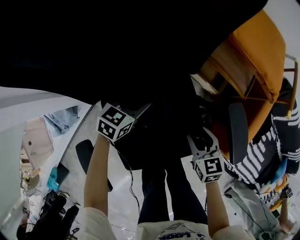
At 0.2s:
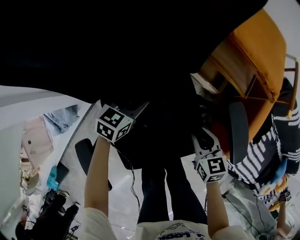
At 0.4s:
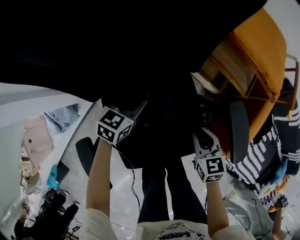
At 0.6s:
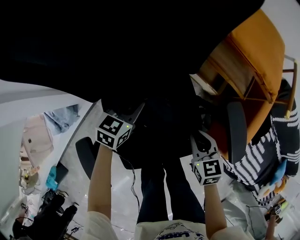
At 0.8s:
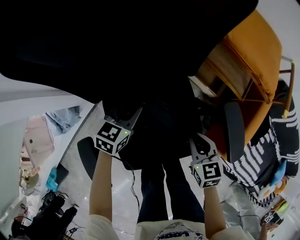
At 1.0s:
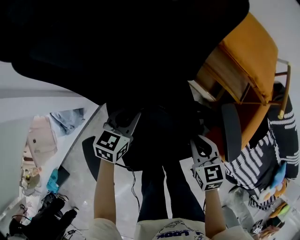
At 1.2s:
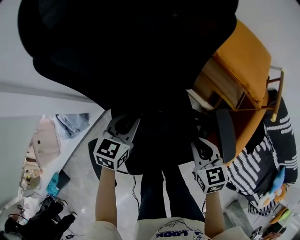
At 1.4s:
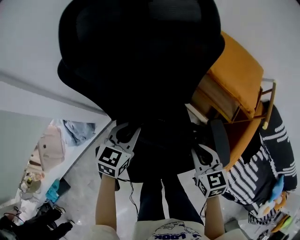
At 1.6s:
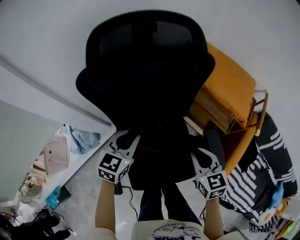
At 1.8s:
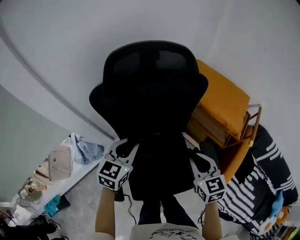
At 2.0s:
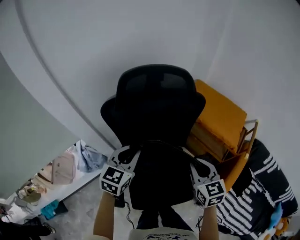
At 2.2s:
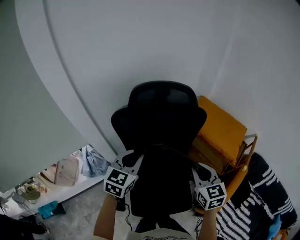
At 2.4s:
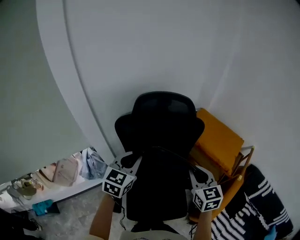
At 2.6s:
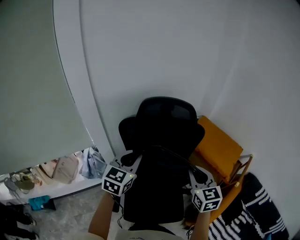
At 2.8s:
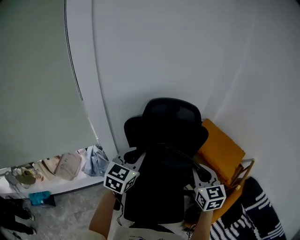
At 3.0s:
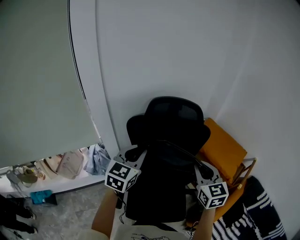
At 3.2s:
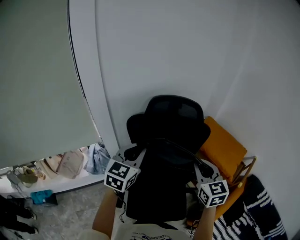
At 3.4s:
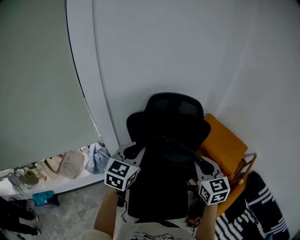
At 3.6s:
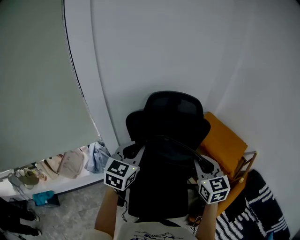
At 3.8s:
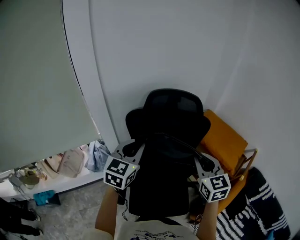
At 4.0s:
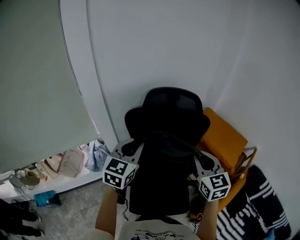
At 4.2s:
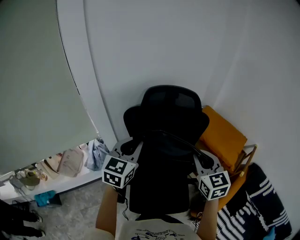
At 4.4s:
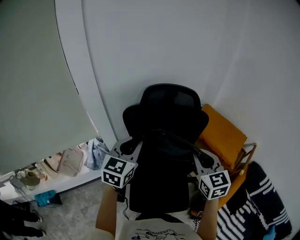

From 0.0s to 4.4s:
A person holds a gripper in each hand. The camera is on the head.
From 0.0s to 1.4s: Both grippers move upward, about 20 cm. The right gripper closes its fingers. Meanwhile the left gripper turns by roughly 20 degrees, and closes its fingers.
From 1.4s to 3.0s: The grippers both shift upward by about 35 cm. The right gripper swivels about 30 degrees, while the left gripper turns by approximately 30 degrees.
From 3.0s to 4.4s: Both grippers stay put.

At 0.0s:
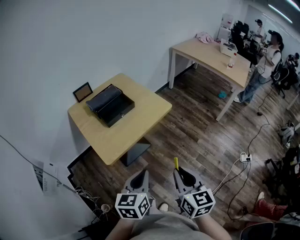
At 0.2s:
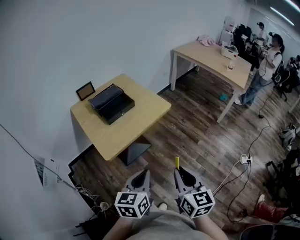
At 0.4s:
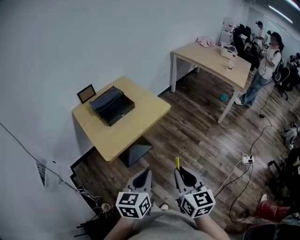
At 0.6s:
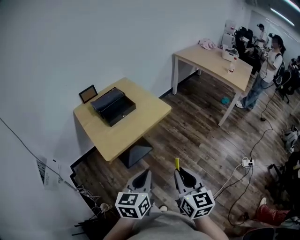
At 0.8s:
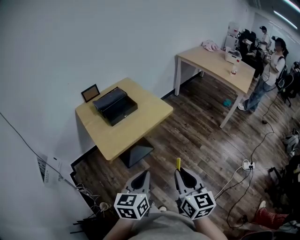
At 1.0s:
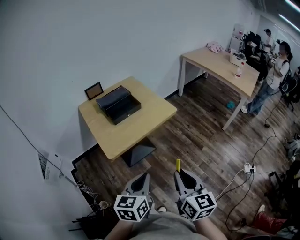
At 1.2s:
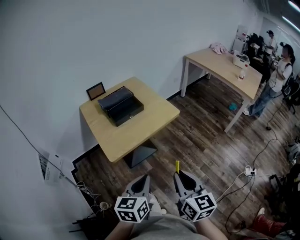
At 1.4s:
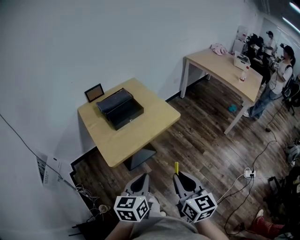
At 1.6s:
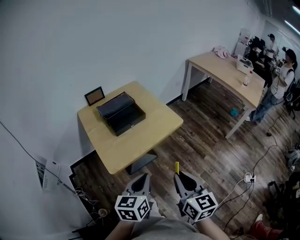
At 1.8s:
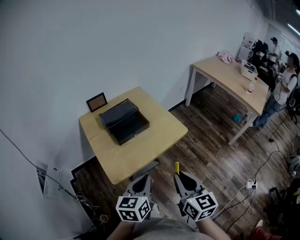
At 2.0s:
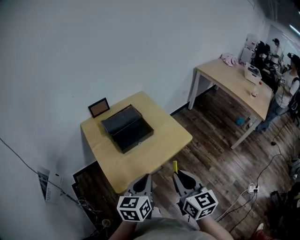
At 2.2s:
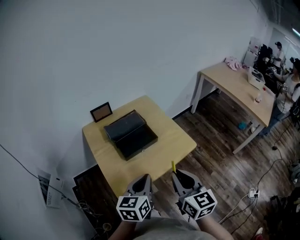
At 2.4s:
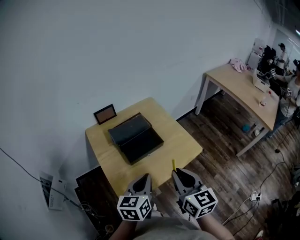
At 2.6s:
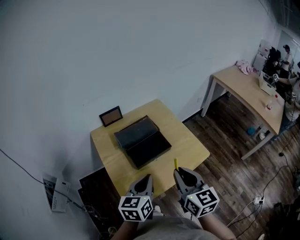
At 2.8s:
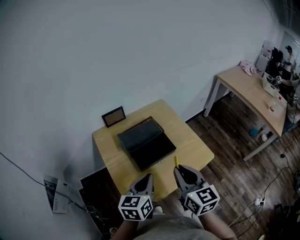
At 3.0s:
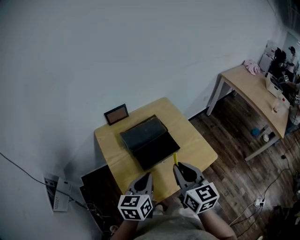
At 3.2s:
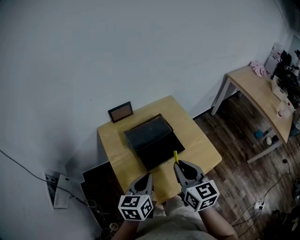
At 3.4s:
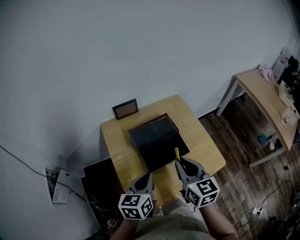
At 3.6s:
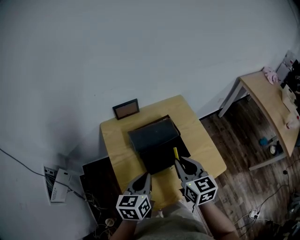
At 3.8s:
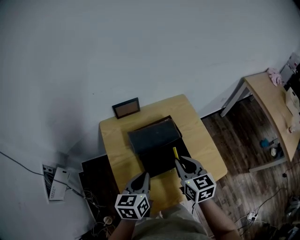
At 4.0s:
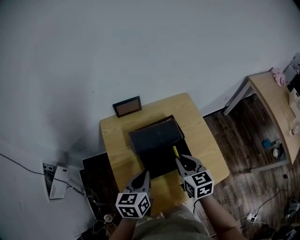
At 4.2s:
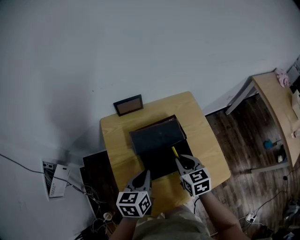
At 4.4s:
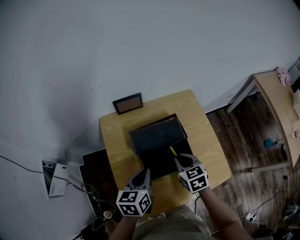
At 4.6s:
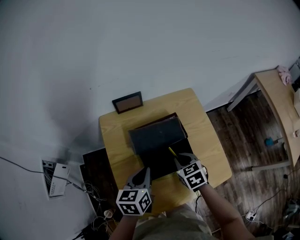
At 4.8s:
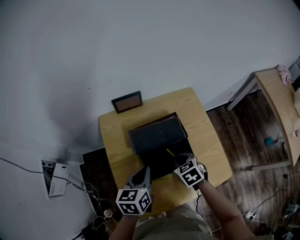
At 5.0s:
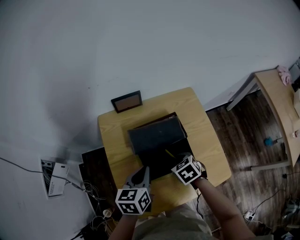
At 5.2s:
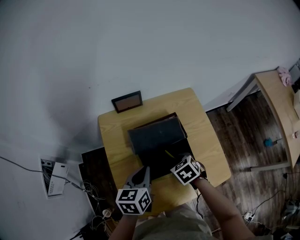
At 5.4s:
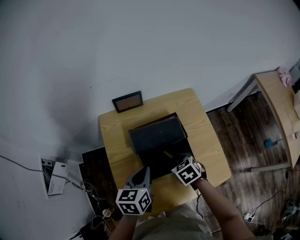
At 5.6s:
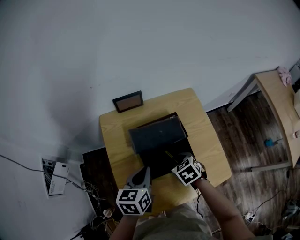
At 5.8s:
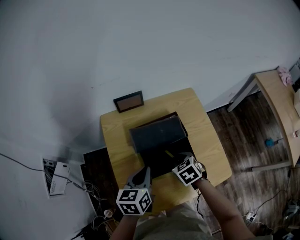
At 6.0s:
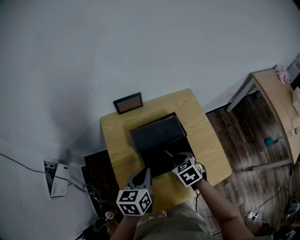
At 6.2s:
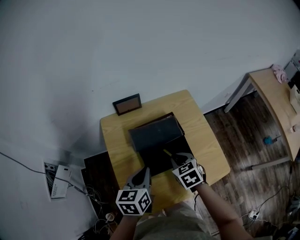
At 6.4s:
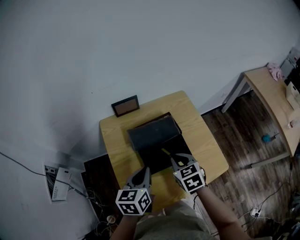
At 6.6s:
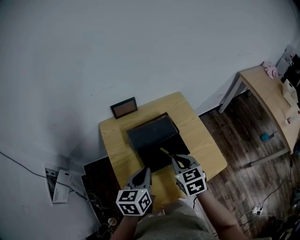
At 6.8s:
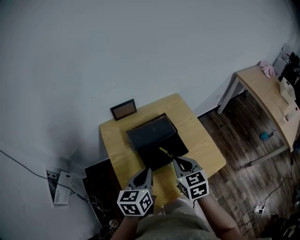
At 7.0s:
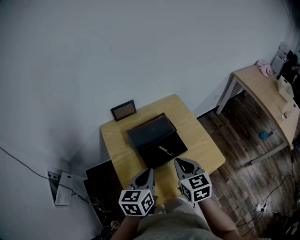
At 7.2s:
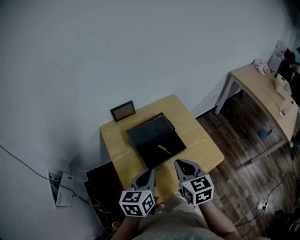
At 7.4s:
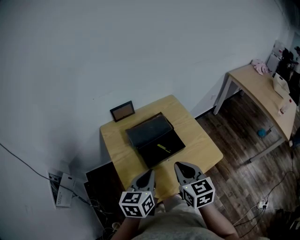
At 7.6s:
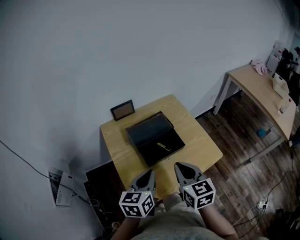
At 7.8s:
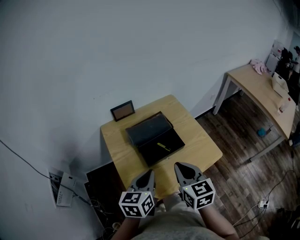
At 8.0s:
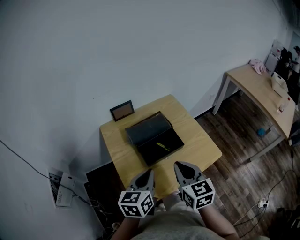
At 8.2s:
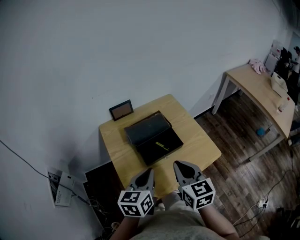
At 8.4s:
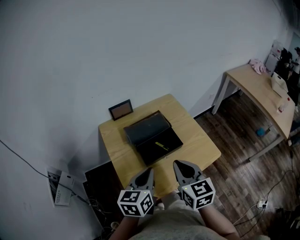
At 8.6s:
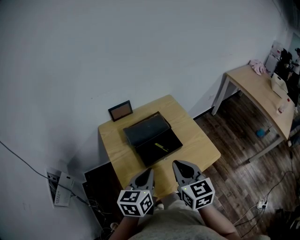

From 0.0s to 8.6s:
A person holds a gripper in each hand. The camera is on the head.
From 0.0s to 1.4s: The grippers move only a little.
From 1.4s to 2.8s: Both grippers travel together forward and to the left, some 30 cm.
From 2.8s to 4.4s: The right gripper moves forward and downward, about 25 cm, and tips its fingers downward by some 30 degrees. The left gripper travels forward, downward and to the left by approximately 15 cm.
From 5.8s to 7.2s: The right gripper heads upward and backward, covering approximately 20 cm, and tilts its fingers roughly 30 degrees upward, while the left gripper goes roughly 10 cm backward and upward.
From 7.2s to 8.6s: There are only small adjustments of the grippers.

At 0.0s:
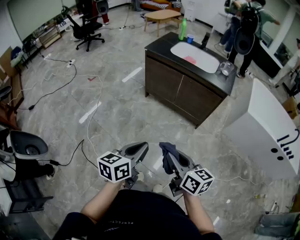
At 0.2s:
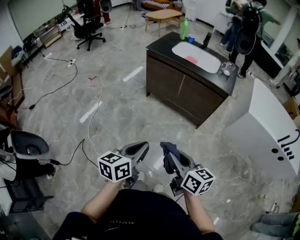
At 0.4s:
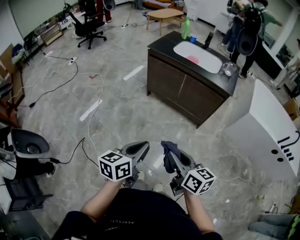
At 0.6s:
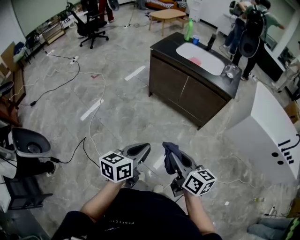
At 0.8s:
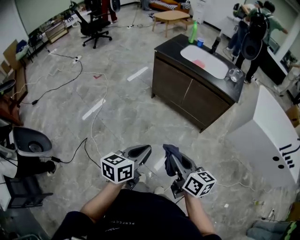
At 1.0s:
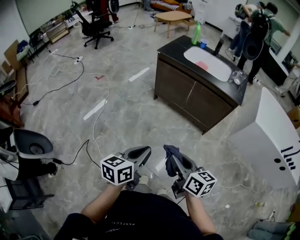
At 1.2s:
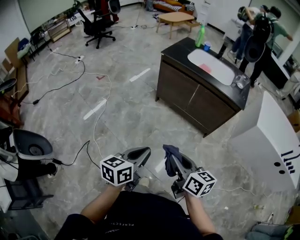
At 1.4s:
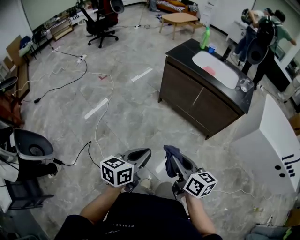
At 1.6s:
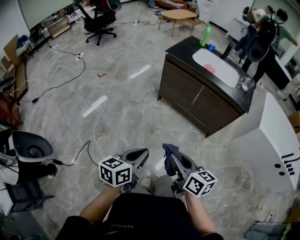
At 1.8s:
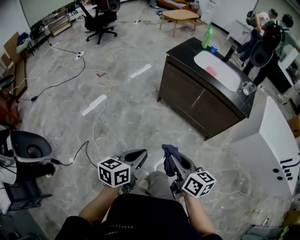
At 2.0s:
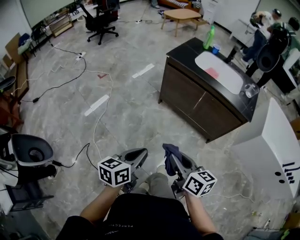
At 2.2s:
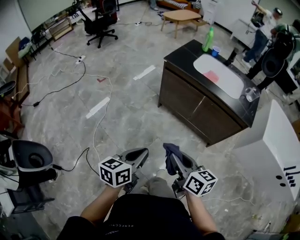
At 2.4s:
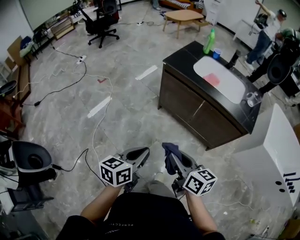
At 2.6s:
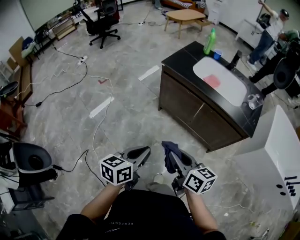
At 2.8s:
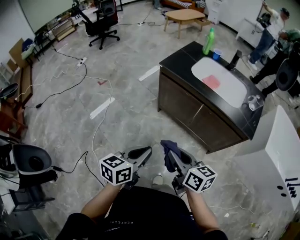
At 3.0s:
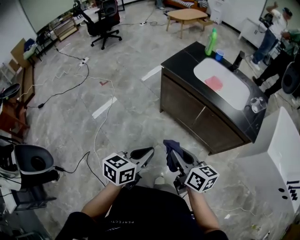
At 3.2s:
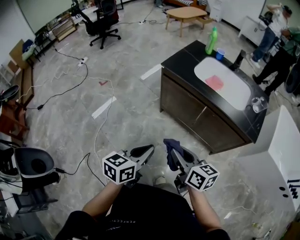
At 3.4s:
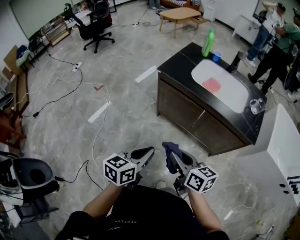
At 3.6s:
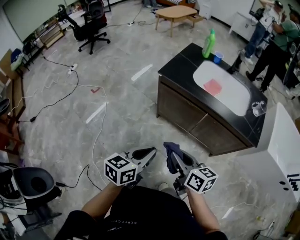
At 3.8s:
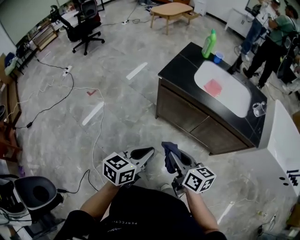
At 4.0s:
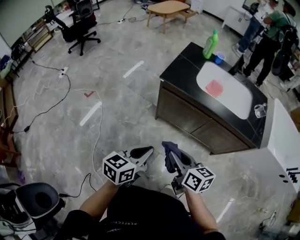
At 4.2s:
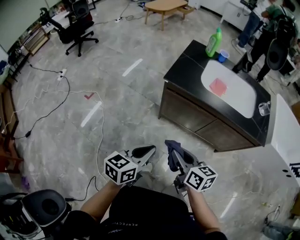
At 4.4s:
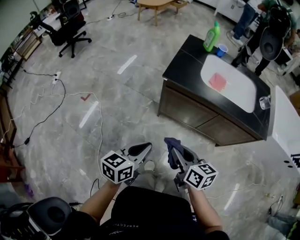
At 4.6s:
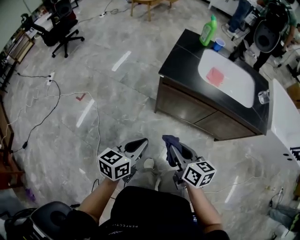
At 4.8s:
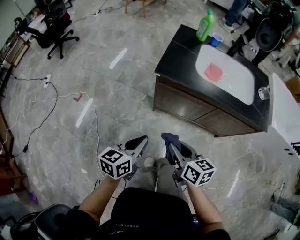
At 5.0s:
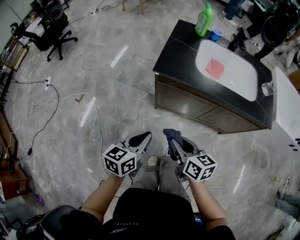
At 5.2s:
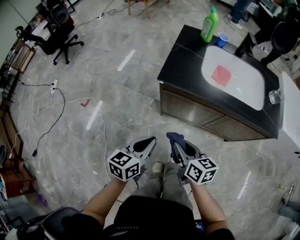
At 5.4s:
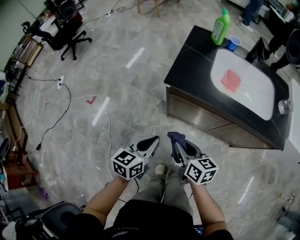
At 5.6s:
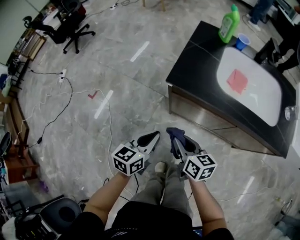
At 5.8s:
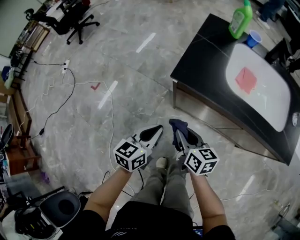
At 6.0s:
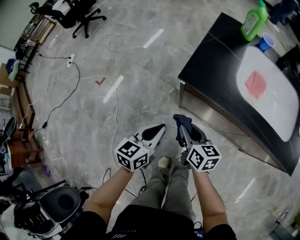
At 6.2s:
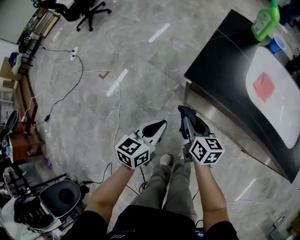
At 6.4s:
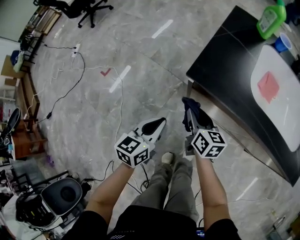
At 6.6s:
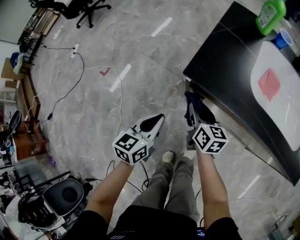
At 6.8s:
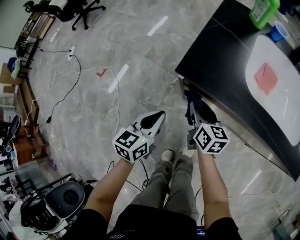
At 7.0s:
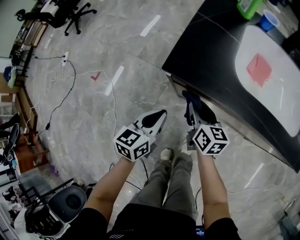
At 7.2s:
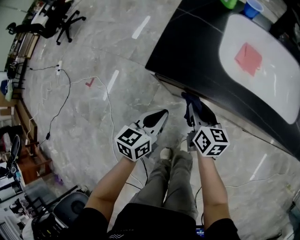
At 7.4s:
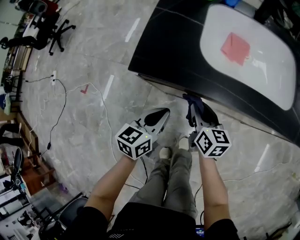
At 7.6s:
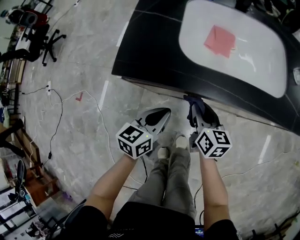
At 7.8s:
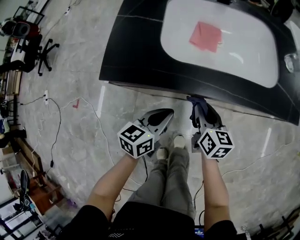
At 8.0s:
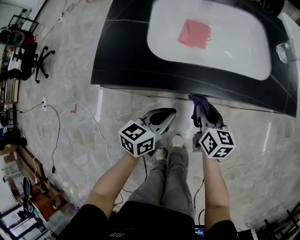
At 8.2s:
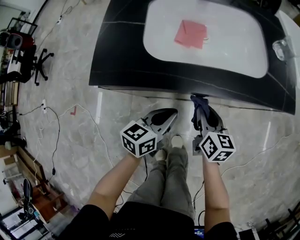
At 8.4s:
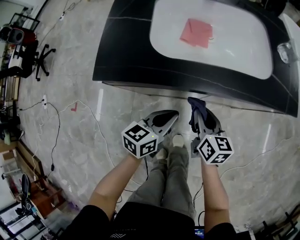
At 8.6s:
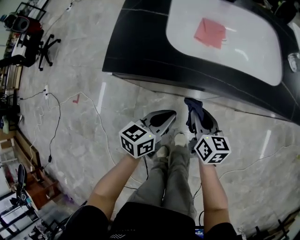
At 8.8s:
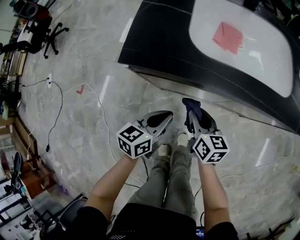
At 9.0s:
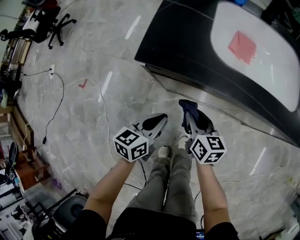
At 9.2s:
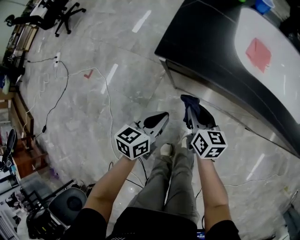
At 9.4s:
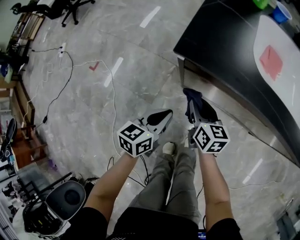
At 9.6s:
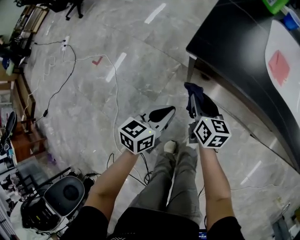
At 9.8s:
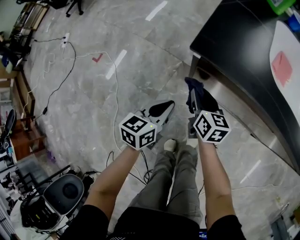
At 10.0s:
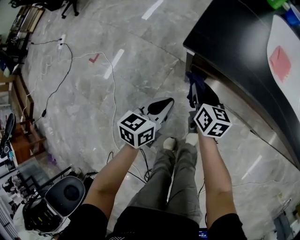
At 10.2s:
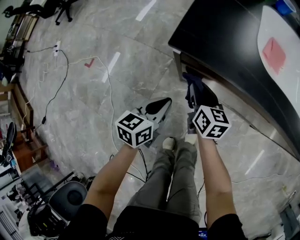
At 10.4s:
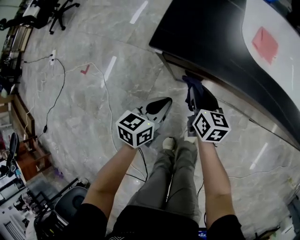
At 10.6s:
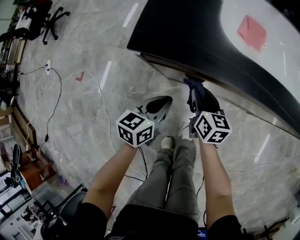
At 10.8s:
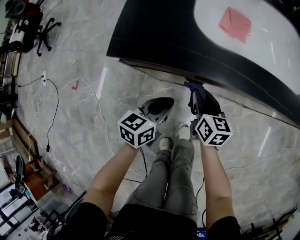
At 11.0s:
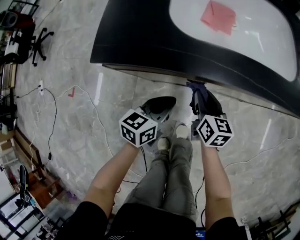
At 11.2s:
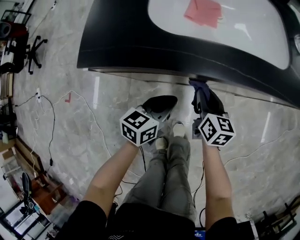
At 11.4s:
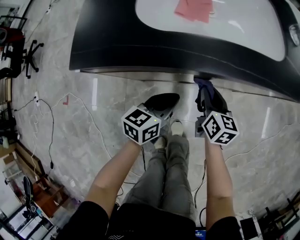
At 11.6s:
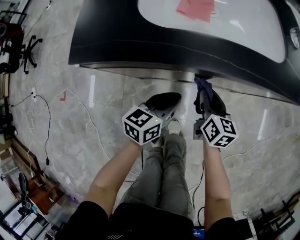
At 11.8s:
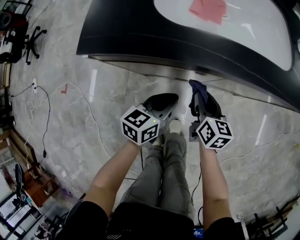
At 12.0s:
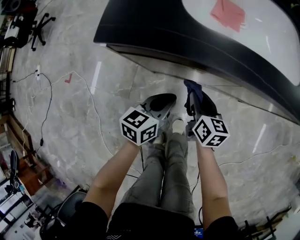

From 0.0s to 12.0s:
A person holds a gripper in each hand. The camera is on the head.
From 0.0s to 1.6s: The grippers both shift to the left and forward by approximately 15 cm.
From 1.6s to 3.0s: The left gripper shifts some 25 cm forward and to the right, while the right gripper heads forward, covering approximately 25 cm.
From 3.0s to 4.4s: The two grippers go roughly 25 cm forward and to the left.
From 4.4s to 6.0s: Both grippers move forward and downward, roughly 25 cm.
From 6.0s to 7.6s: The right gripper changes place by about 20 cm, and rotates approximately 30 degrees. Meanwhile the left gripper moves some 20 cm, and swivels some 20 degrees.
From 7.6s to 9.0s: The right gripper goes roughly 10 cm to the left and backward. The left gripper is displaced backward by about 5 cm, and reaches approximately 10 cm to the right, then returns.
From 9.0s to 10.4s: The left gripper shifts roughly 5 cm to the left. Meanwhile the right gripper moves forward and to the left, about 10 cm.
From 10.4s to 12.0s: Both grippers travel together to the right, some 15 cm.
